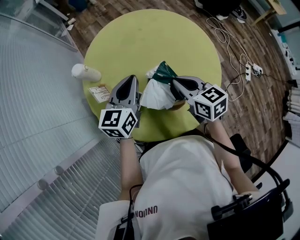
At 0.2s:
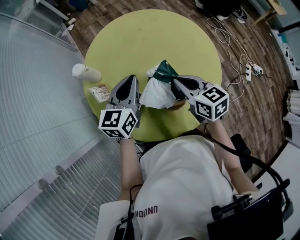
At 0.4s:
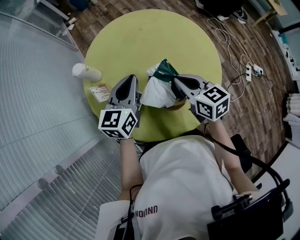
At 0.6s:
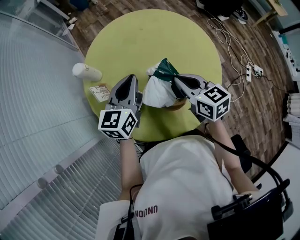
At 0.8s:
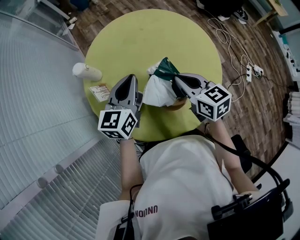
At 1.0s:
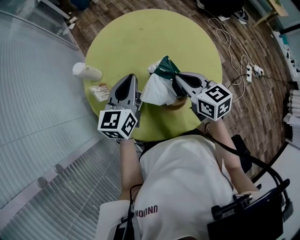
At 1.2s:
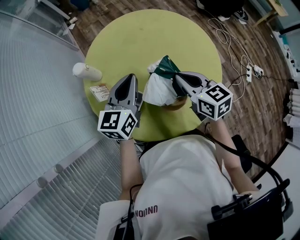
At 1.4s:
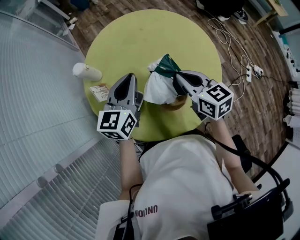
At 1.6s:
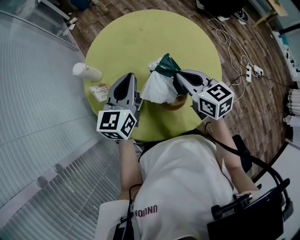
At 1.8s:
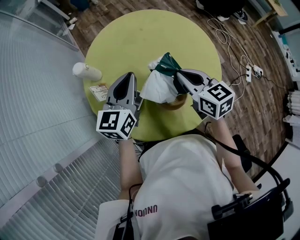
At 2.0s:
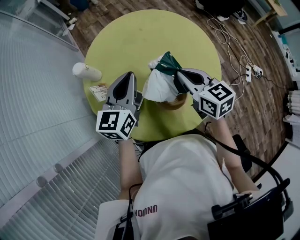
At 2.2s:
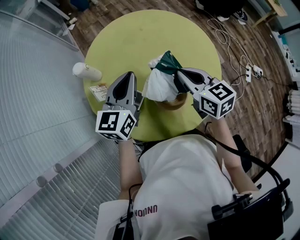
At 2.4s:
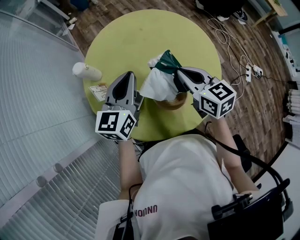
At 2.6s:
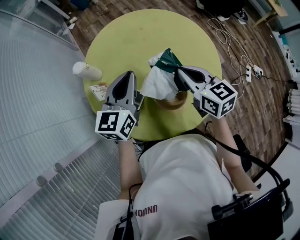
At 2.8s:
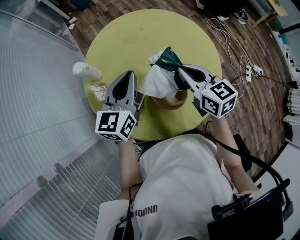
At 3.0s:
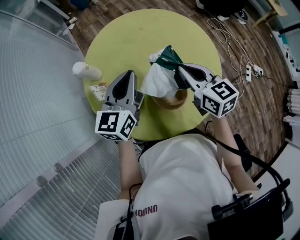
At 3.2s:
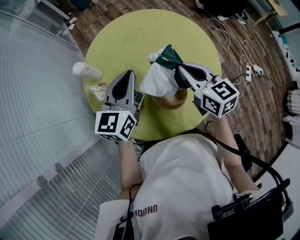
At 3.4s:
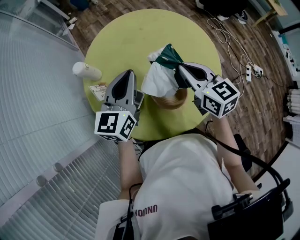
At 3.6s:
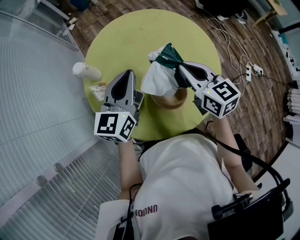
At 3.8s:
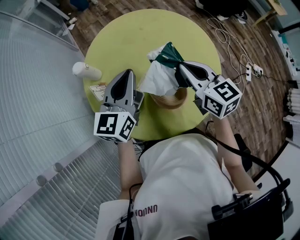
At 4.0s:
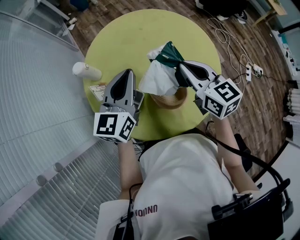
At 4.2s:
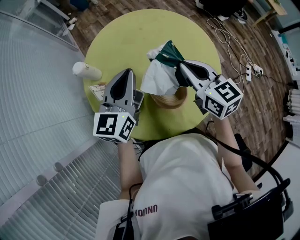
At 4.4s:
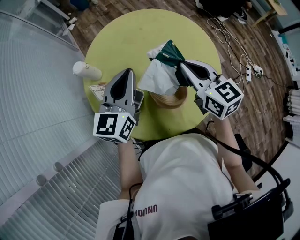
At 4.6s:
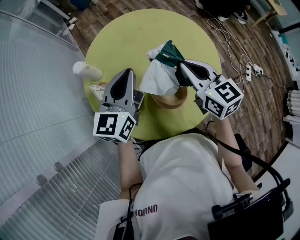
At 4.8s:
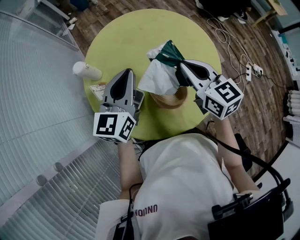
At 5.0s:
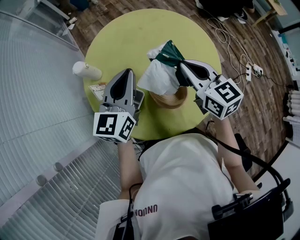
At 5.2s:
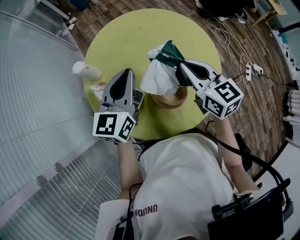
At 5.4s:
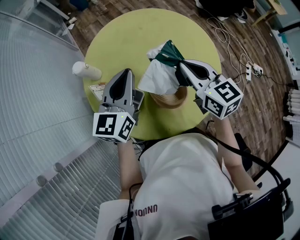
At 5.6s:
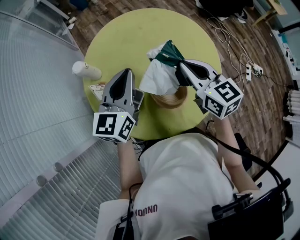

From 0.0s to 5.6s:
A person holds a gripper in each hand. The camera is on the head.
From 0.0s to 2.8s: The grippers move only a little.
From 2.8s to 4.2s: The grippers move only a little.
From 4.2s to 5.6s: Neither gripper changes place.

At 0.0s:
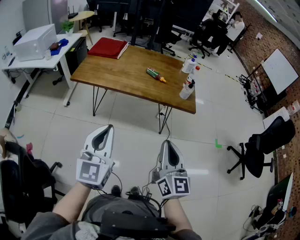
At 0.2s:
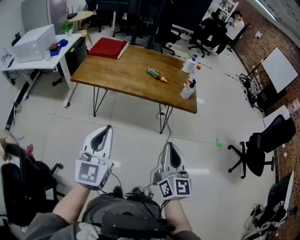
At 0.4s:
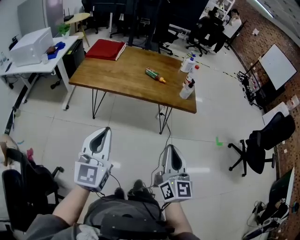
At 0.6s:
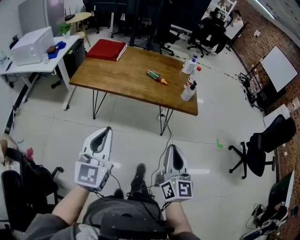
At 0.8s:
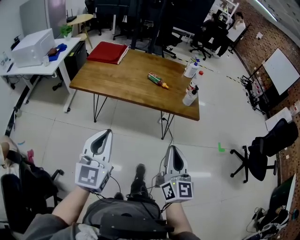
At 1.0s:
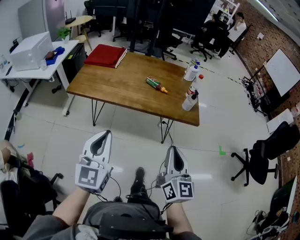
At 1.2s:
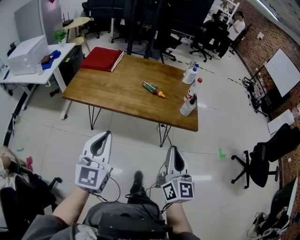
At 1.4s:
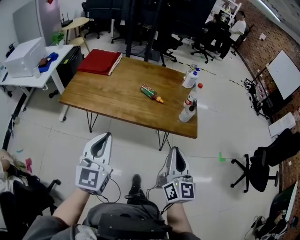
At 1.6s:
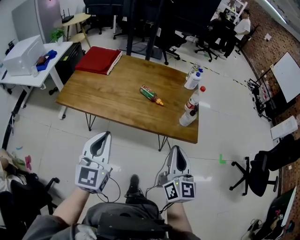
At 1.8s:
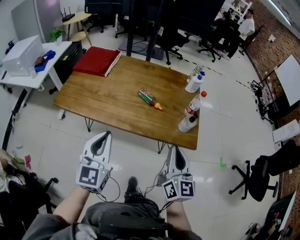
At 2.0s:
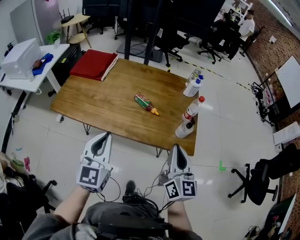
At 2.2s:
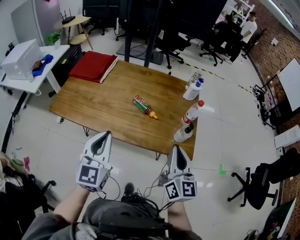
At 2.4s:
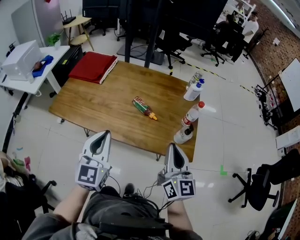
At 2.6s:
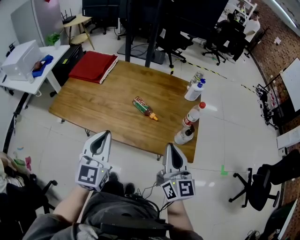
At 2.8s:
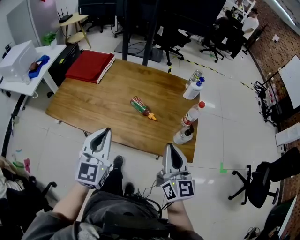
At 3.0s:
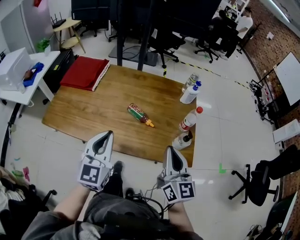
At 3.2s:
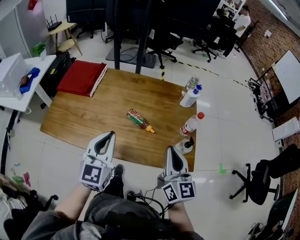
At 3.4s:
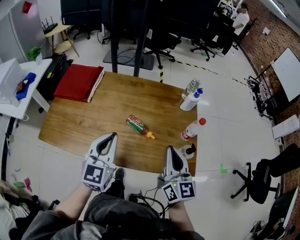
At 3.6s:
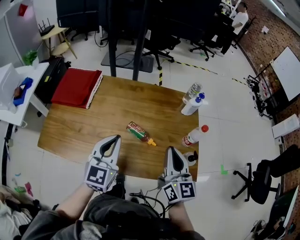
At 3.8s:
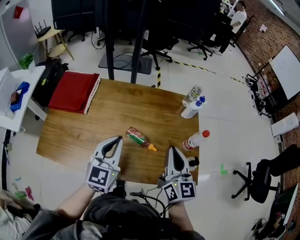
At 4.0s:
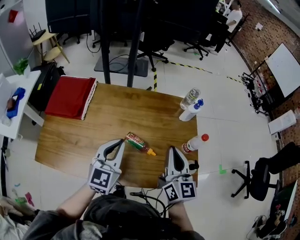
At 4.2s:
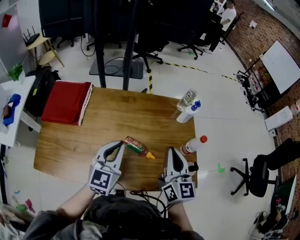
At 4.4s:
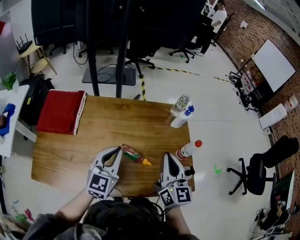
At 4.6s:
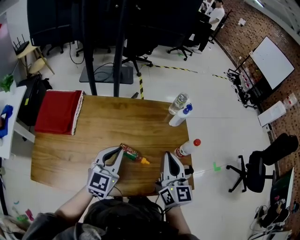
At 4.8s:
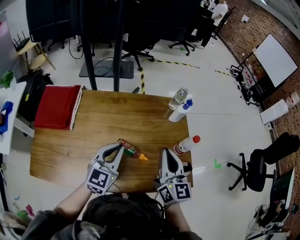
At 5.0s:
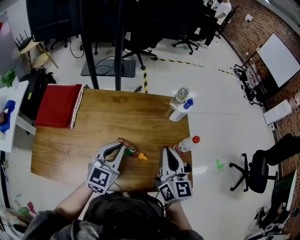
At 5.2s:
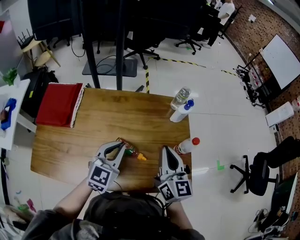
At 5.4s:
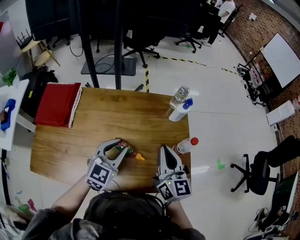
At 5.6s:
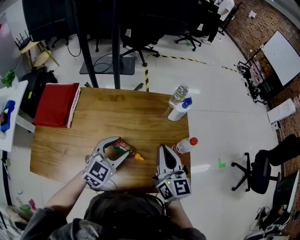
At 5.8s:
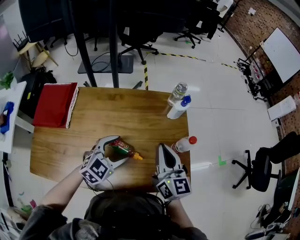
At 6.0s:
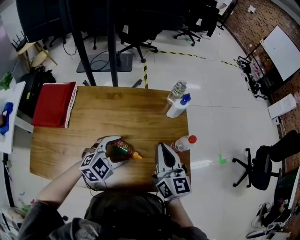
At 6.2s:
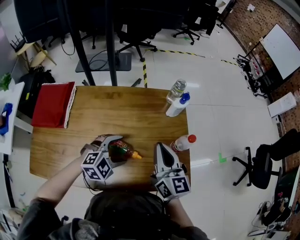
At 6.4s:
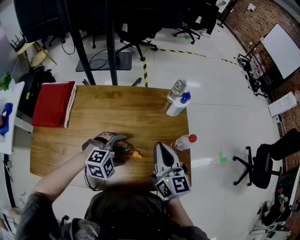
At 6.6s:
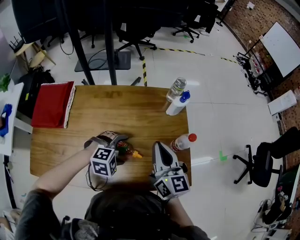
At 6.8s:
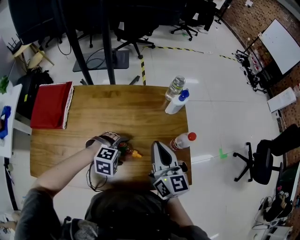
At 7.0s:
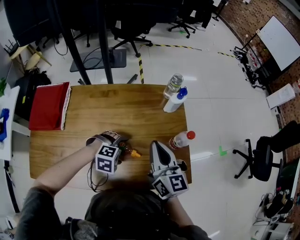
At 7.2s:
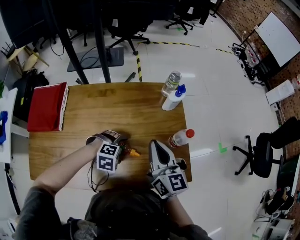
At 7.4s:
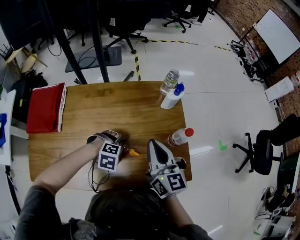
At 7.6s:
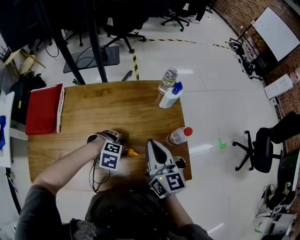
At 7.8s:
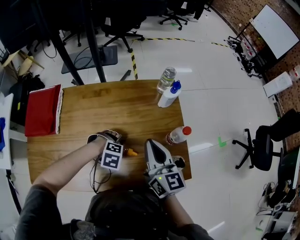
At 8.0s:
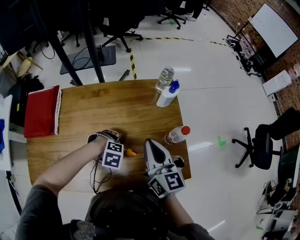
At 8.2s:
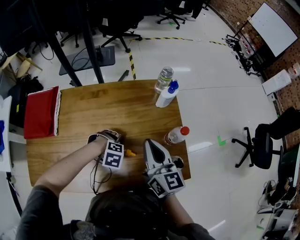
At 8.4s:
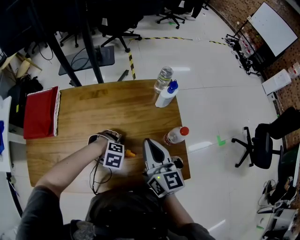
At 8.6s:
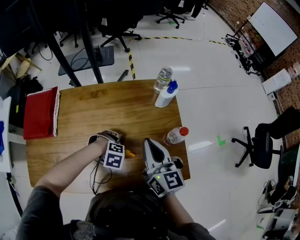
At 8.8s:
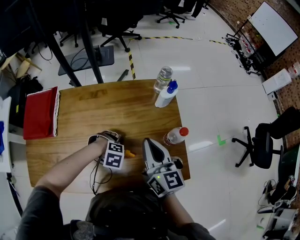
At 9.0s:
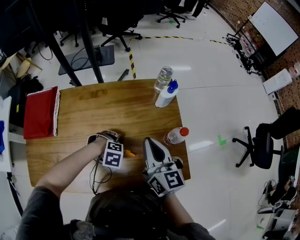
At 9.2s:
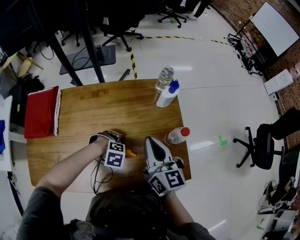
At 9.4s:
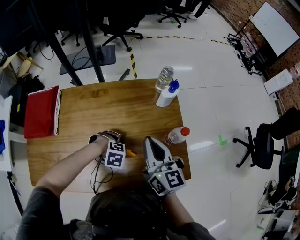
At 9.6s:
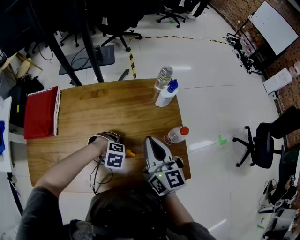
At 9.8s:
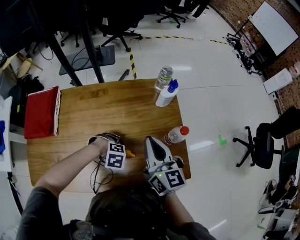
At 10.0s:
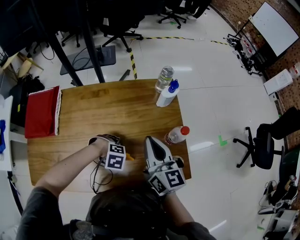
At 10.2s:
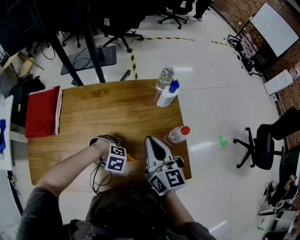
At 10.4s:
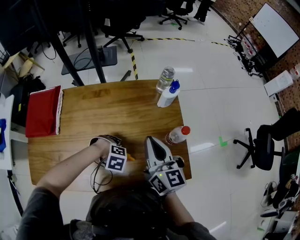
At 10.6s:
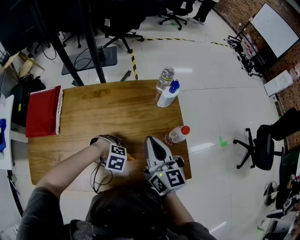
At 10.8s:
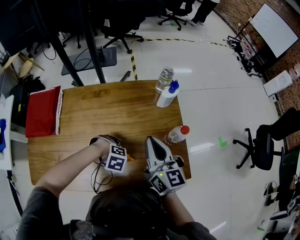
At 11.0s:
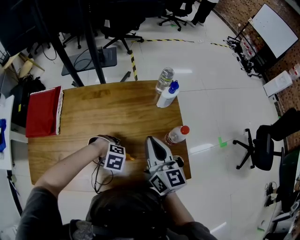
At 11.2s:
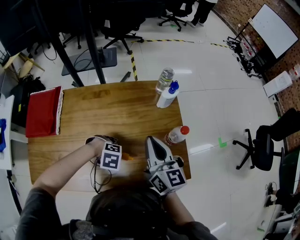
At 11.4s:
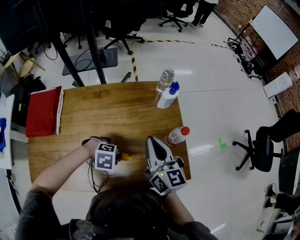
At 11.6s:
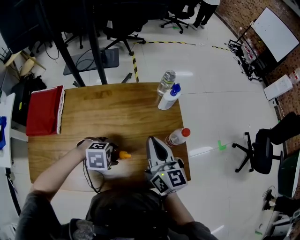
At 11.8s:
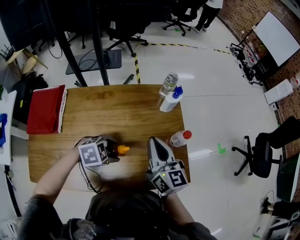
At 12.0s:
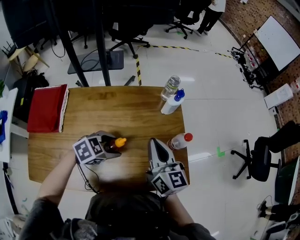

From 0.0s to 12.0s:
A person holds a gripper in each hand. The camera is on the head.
From 0.0s to 1.6s: The grippers both shift forward by some 35 cm.
From 1.6s to 3.0s: The two grippers go approximately 25 cm forward.
From 3.0s to 4.4s: Both grippers travel together forward, approximately 25 cm.
From 4.4s to 6.0s: The right gripper goes some 10 cm forward and to the right; the left gripper is displaced to the right, downward and forward by roughly 15 cm, swivels about 50 degrees, and opens.
From 6.0s to 7.6s: The left gripper is displaced downward by some 15 cm, and tilts its fingers some 40 degrees downward.
From 7.6s to 9.0s: The grippers stay close to where they were, moving slightly.
From 9.0s to 10.4s: The left gripper closes up.
From 10.4s to 12.0s: The left gripper shifts approximately 15 cm upward, and tips its fingers upward by roughly 30 degrees.

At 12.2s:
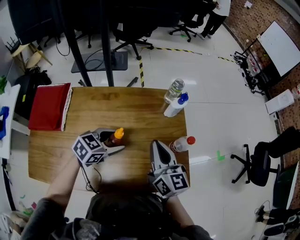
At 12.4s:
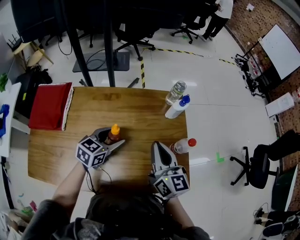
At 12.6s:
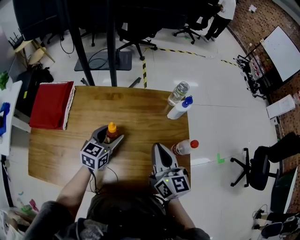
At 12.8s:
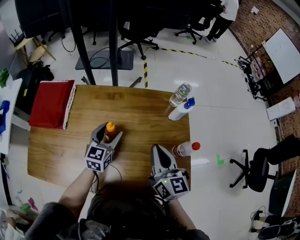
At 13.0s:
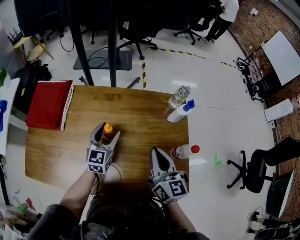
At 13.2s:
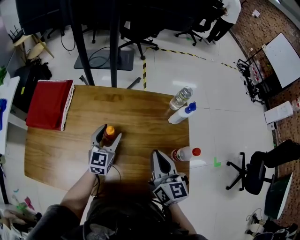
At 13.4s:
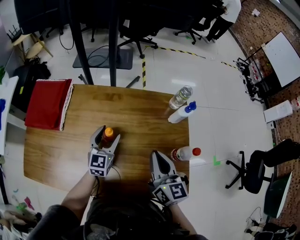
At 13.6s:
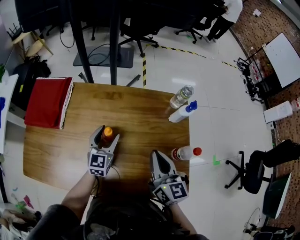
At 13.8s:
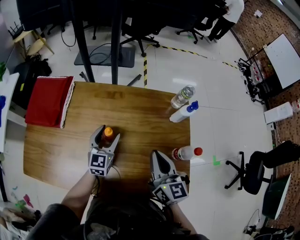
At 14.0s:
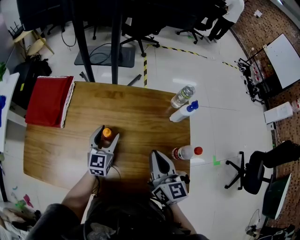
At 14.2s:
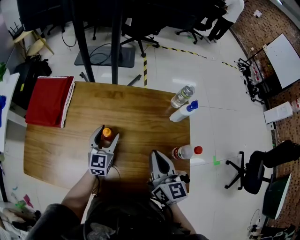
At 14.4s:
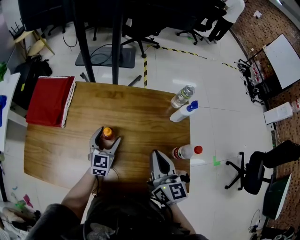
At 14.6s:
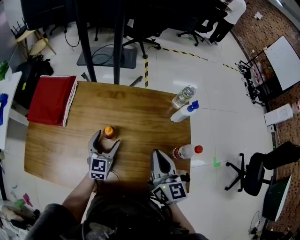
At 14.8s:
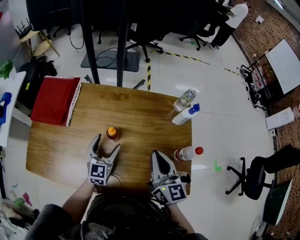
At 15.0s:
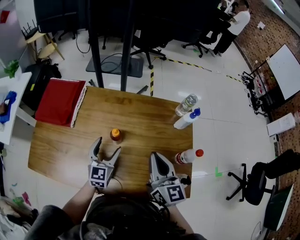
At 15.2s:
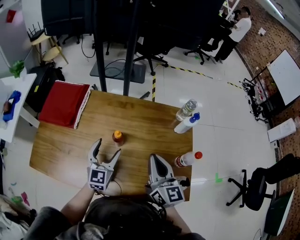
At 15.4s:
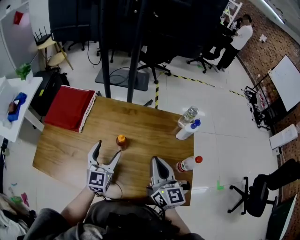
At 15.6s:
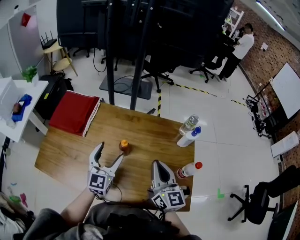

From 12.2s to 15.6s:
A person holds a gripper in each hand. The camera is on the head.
From 12.2s to 13.8s: The right gripper shifts by approximately 5 cm. The left gripper shifts by some 15 cm, and rotates some 50 degrees.
From 13.8s to 15.6s: The left gripper heads upward, backward and to the left, covering some 20 cm, while the right gripper travels upward, backward and to the left by roughly 15 cm.

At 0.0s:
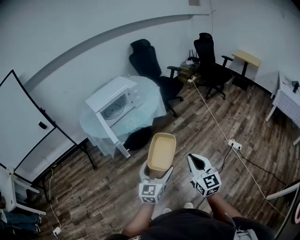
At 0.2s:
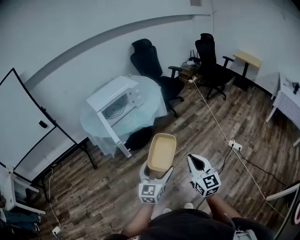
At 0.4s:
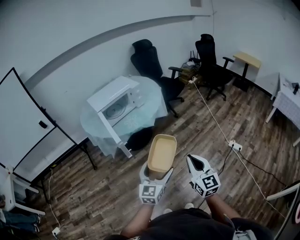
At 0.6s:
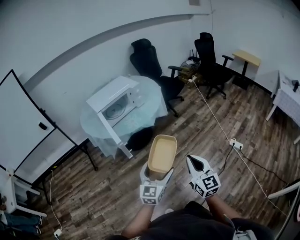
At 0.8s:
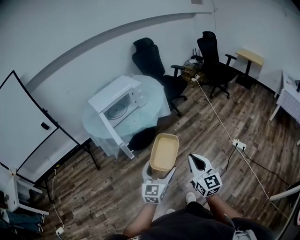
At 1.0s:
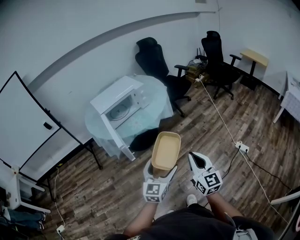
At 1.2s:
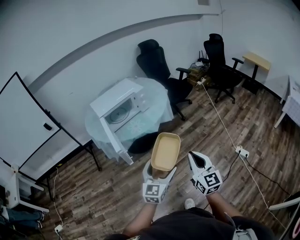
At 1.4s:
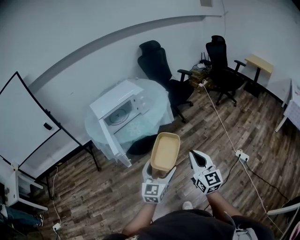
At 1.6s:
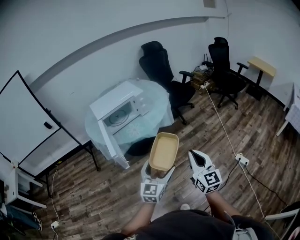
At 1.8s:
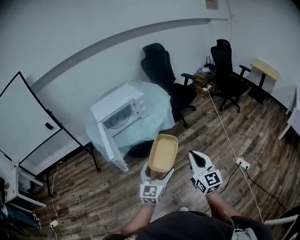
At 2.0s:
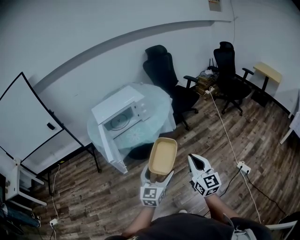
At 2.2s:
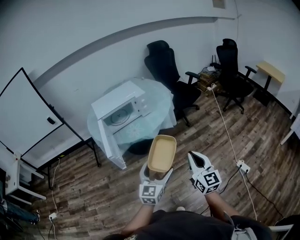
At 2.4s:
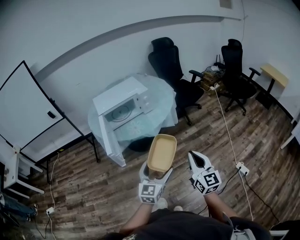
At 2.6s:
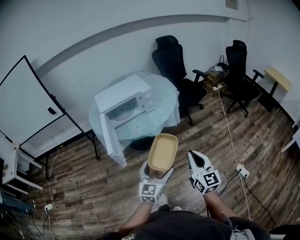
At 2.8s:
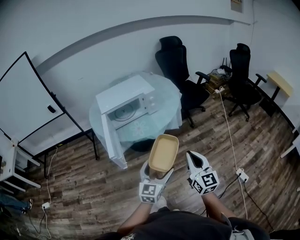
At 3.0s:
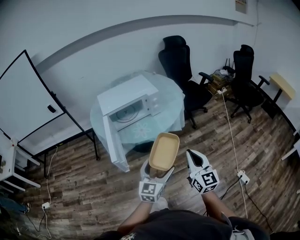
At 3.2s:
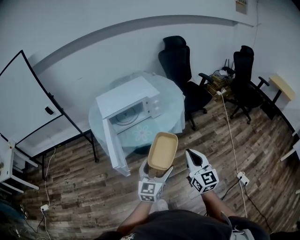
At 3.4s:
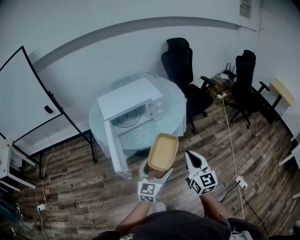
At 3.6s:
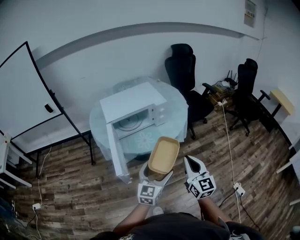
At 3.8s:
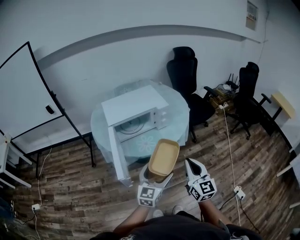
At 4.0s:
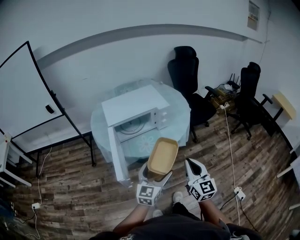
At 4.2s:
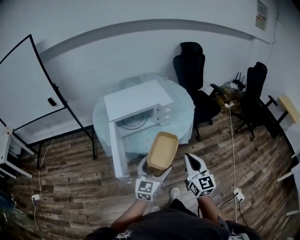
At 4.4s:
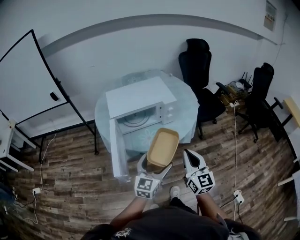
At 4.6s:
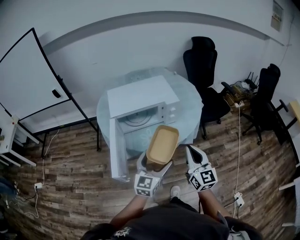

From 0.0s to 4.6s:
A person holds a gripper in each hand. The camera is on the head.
From 0.0s to 1.6s: Both grippers travel together forward, approximately 15 cm.
From 1.6s to 3.0s: Both grippers move forward, about 10 cm.
From 3.0s to 4.6s: The grippers both shift forward by some 20 cm.
